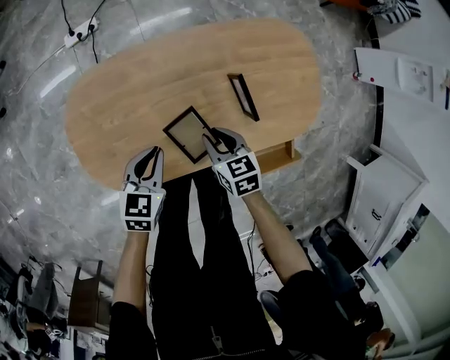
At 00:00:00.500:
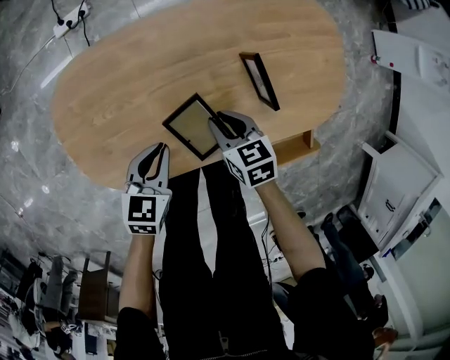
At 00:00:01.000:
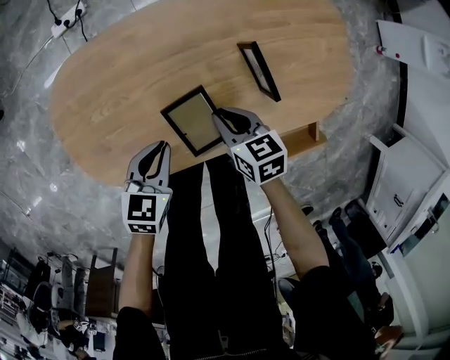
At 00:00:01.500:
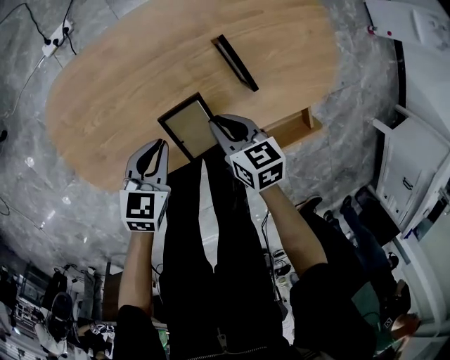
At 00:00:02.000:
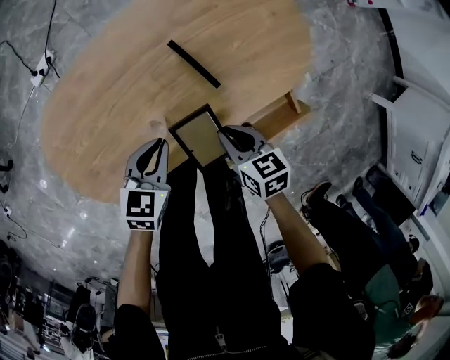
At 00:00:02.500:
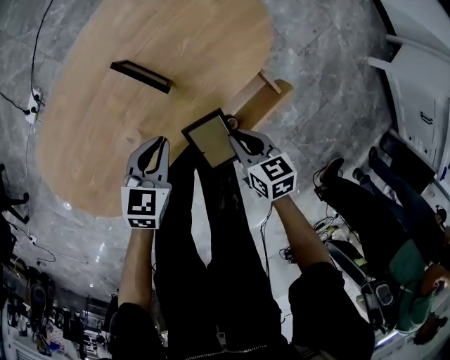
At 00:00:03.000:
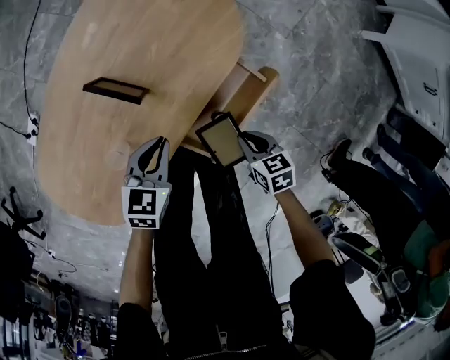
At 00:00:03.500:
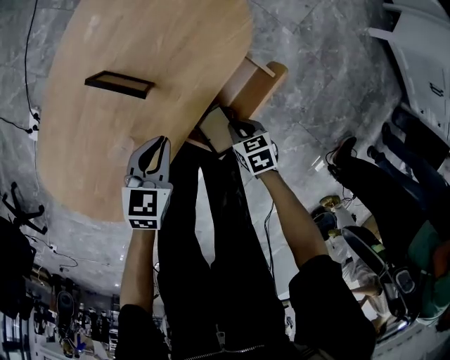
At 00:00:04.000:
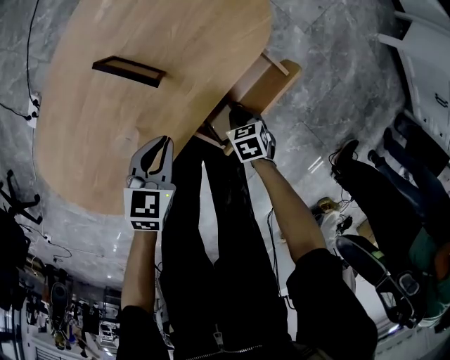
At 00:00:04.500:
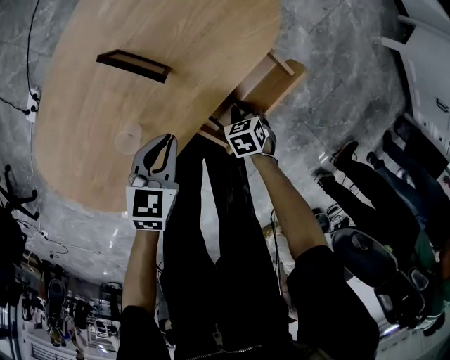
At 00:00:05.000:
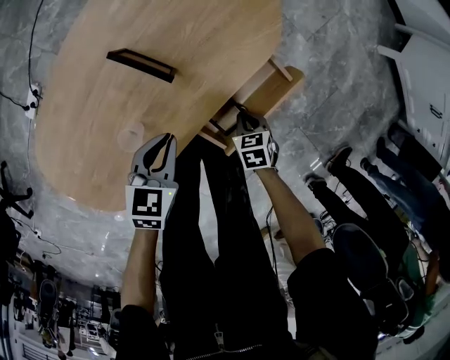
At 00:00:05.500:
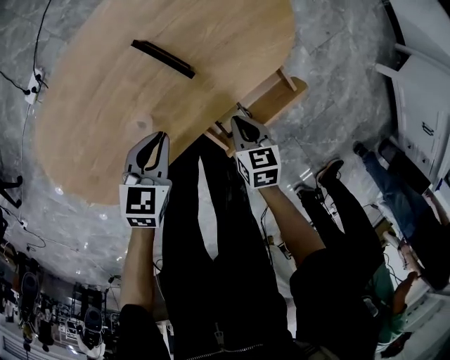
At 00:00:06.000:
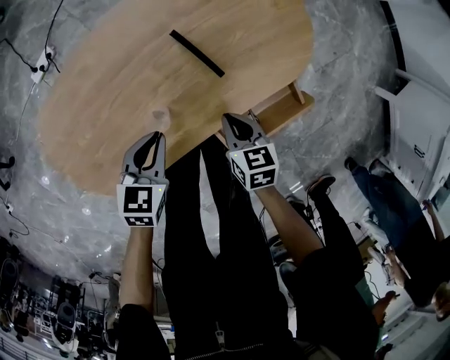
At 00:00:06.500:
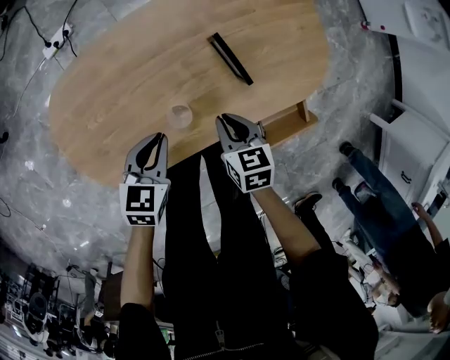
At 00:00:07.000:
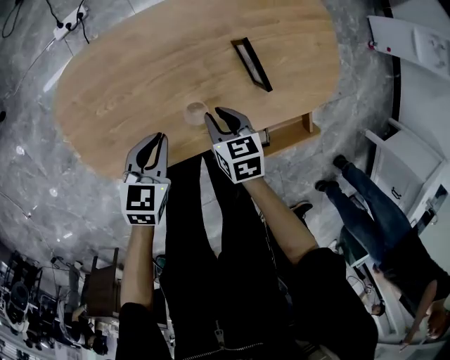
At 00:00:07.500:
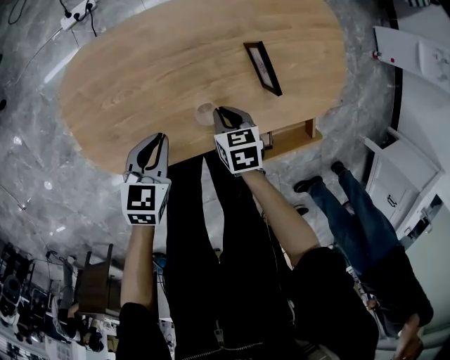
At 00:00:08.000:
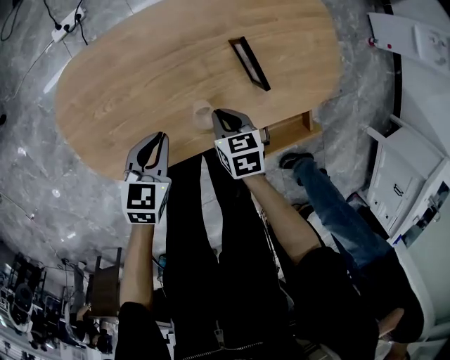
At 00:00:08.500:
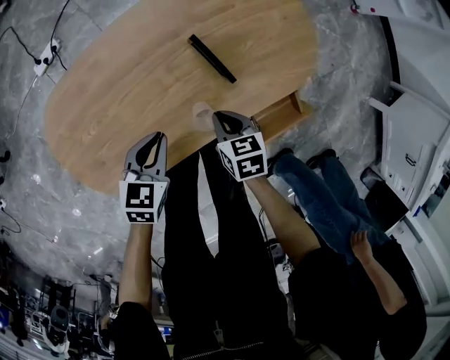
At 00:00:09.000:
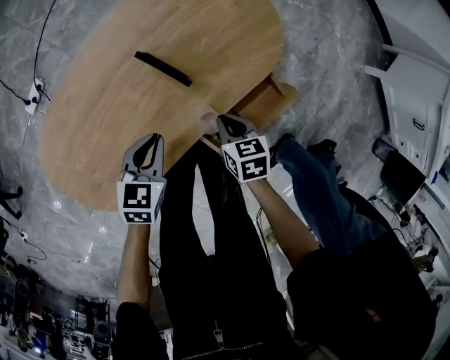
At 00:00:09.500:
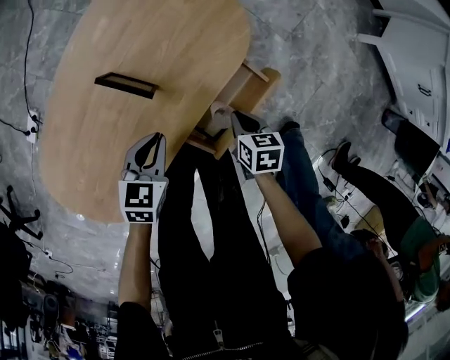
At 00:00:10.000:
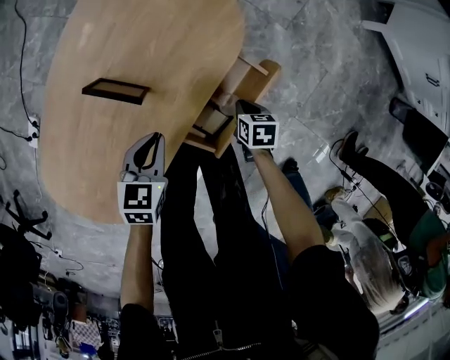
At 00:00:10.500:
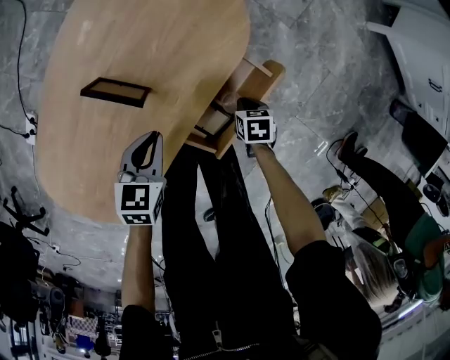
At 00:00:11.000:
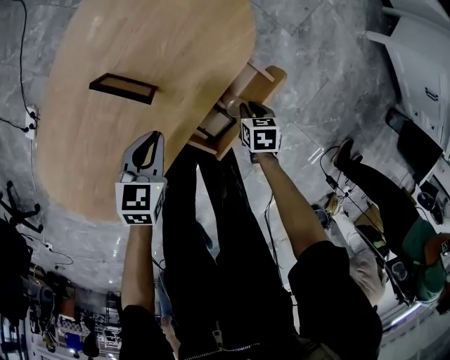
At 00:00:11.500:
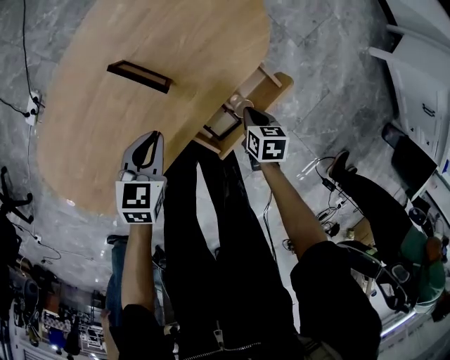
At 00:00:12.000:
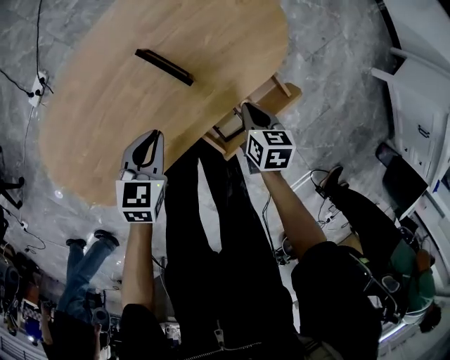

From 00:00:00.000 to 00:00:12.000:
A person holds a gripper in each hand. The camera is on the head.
From 00:00:00.000 to 00:00:02.000: The right gripper is displaced to the right and backward by roughly 15 cm, and changes its angle by some 20 degrees. The left gripper shifts about 10 cm to the right.
From 00:00:02.000 to 00:00:04.000: The right gripper is displaced downward by approximately 15 cm, and turns by about 30 degrees, while the left gripper changes place by some 10 cm.
From 00:00:04.000 to 00:00:06.000: The left gripper ends up roughly 10 cm from where it was; the right gripper shifts by approximately 20 cm, and turns by approximately 20 degrees.
From 00:00:06.000 to 00:00:08.000: The two grippers go roughly 10 cm to the left.
From 00:00:08.000 to 00:00:10.000: The left gripper ends up some 25 cm from where it was, and changes its angle by some 40 degrees. The right gripper moves some 35 cm, and twists some 50 degrees clockwise, seen from behind.
From 00:00:10.000 to 00:00:12.000: The right gripper changes place by roughly 15 cm; the left gripper changes place by roughly 10 cm.

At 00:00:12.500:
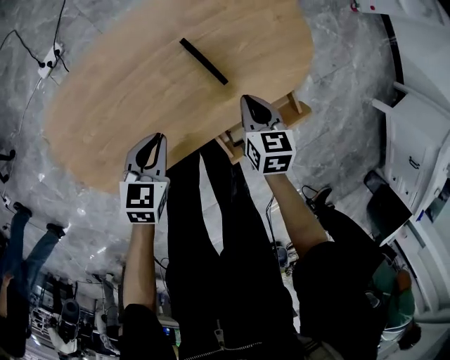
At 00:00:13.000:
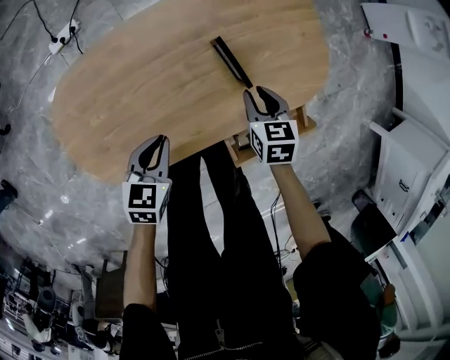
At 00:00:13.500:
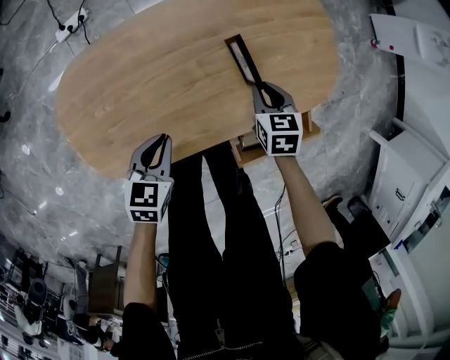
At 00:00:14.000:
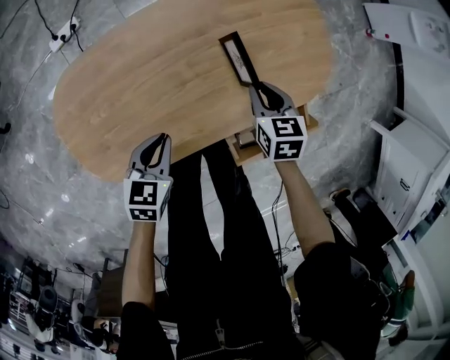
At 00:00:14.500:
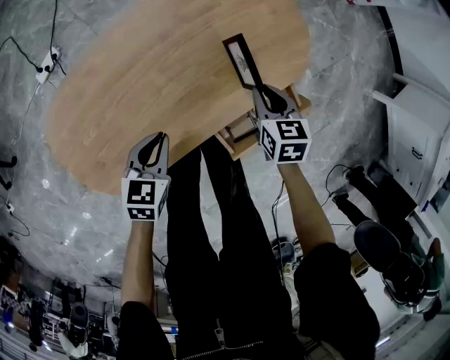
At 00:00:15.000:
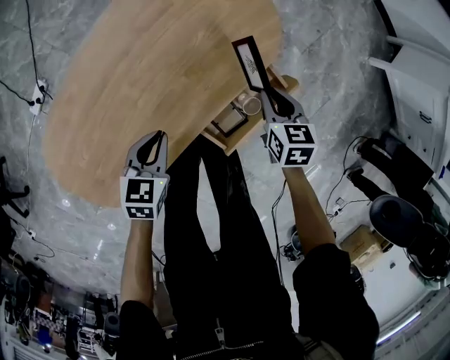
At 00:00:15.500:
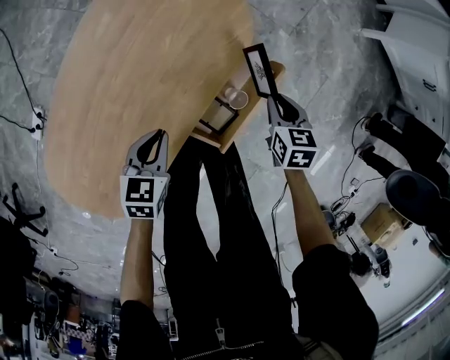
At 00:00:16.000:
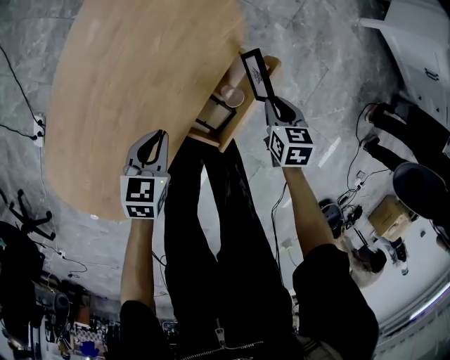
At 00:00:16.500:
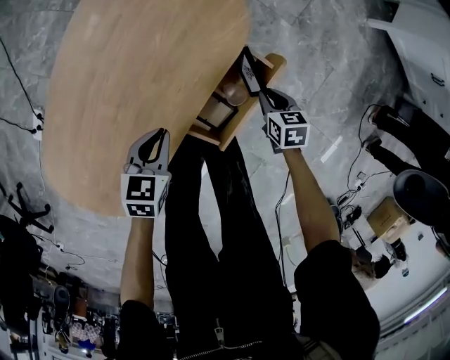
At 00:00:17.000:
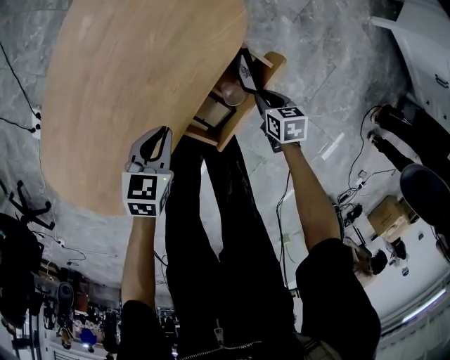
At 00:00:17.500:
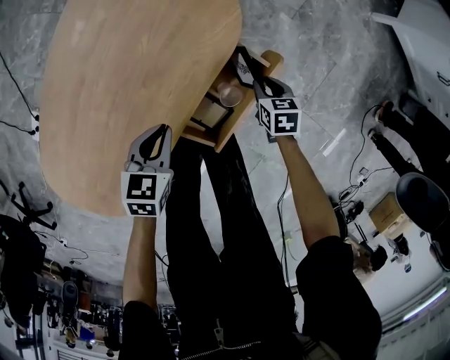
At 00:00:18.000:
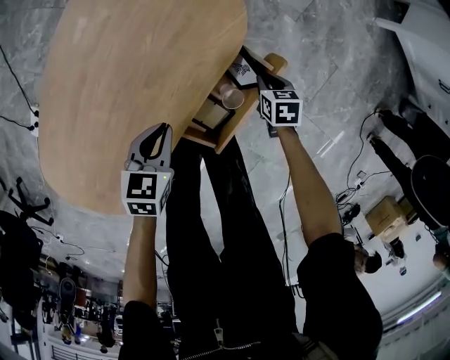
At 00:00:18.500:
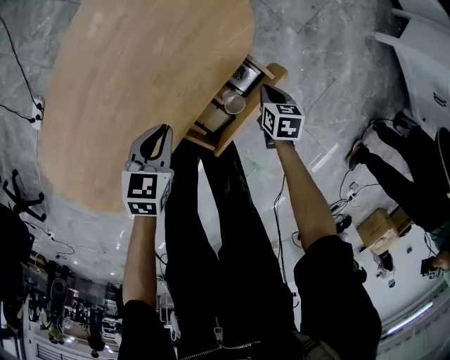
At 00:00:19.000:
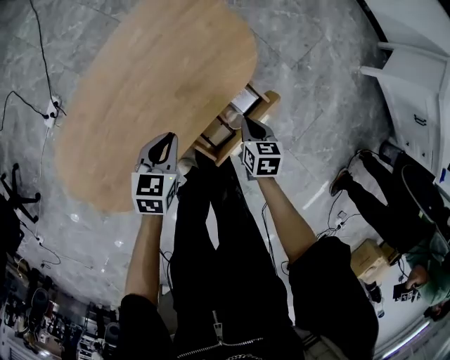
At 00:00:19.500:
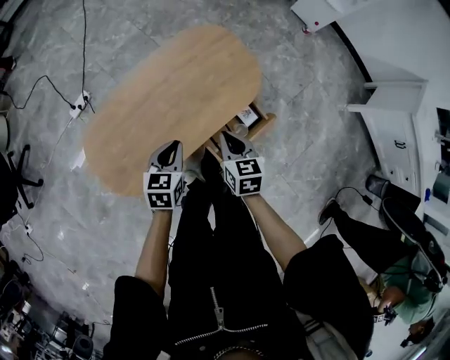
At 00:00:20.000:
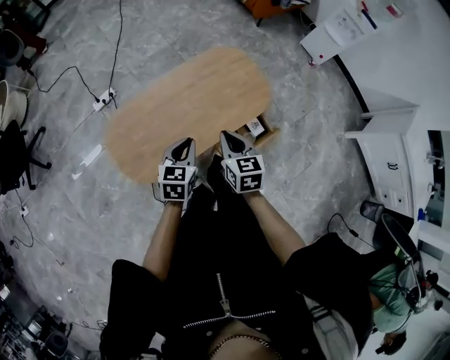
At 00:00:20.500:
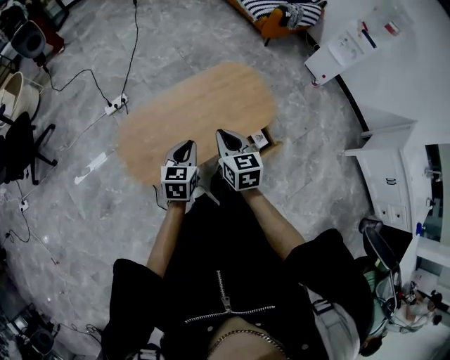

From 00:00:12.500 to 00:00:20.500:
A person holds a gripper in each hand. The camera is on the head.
From 00:00:14.500 to 00:00:16.500: The right gripper shifts by roughly 25 cm, and turns by approximately 20 degrees. Meanwhile the left gripper changes place by approximately 15 cm, and turns by approximately 20 degrees.
From 00:00:16.500 to 00:00:18.500: The right gripper changes place by roughly 5 cm.
From 00:00:18.500 to 00:00:20.500: The left gripper shifts about 35 cm upward, and rotates some 40 degrees, while the right gripper shifts about 50 cm upward, and tilts its fingers roughly 40 degrees upward.

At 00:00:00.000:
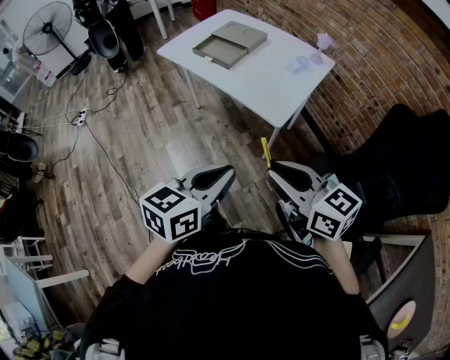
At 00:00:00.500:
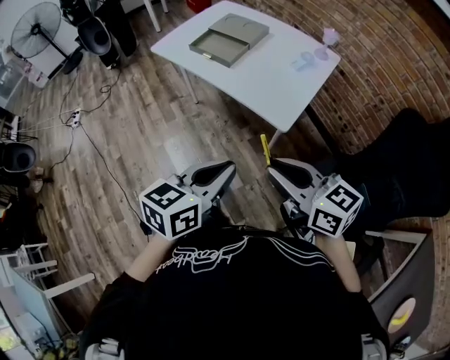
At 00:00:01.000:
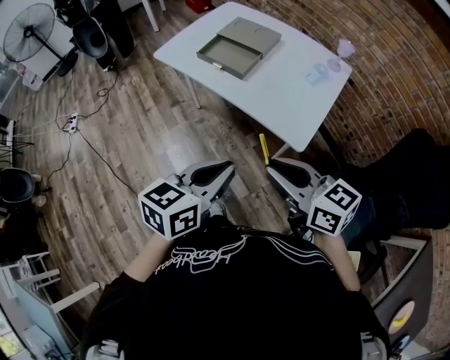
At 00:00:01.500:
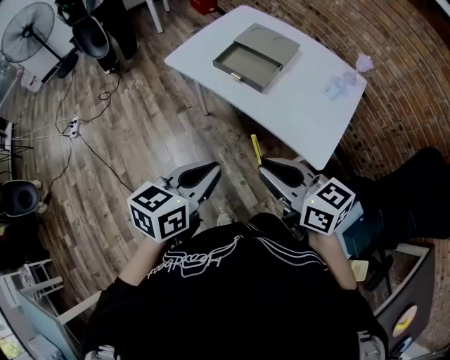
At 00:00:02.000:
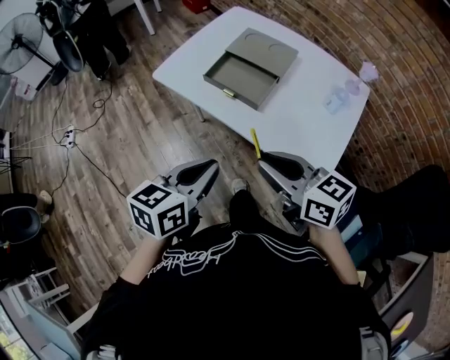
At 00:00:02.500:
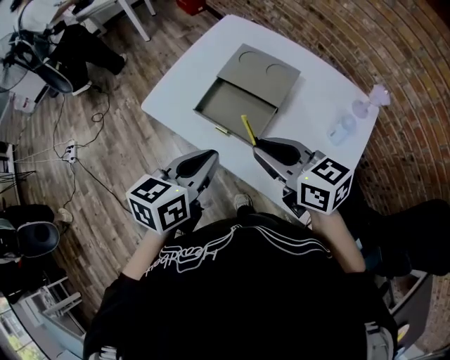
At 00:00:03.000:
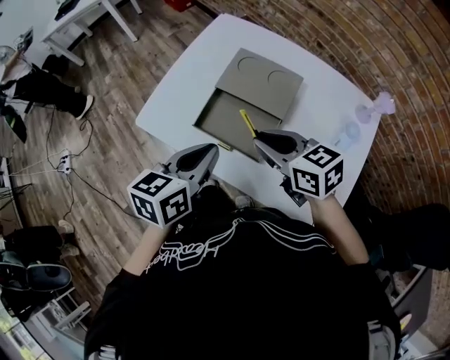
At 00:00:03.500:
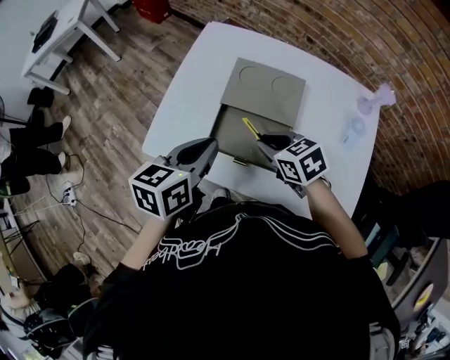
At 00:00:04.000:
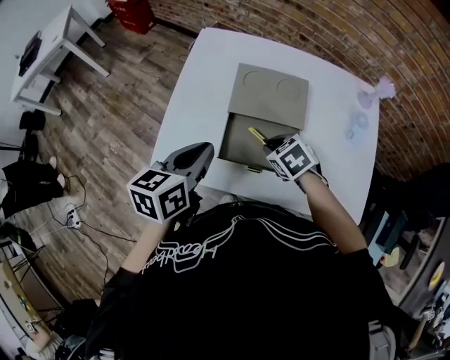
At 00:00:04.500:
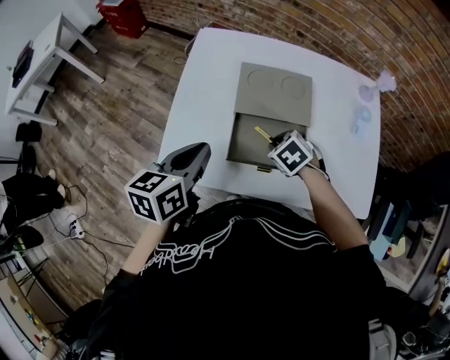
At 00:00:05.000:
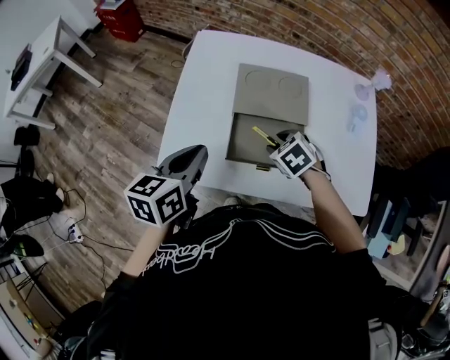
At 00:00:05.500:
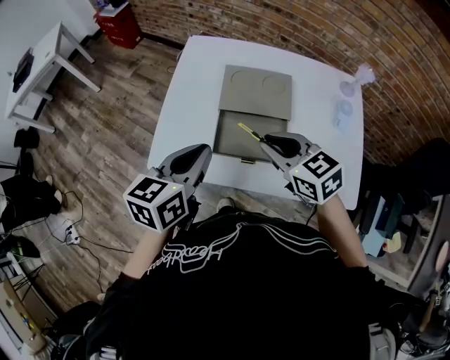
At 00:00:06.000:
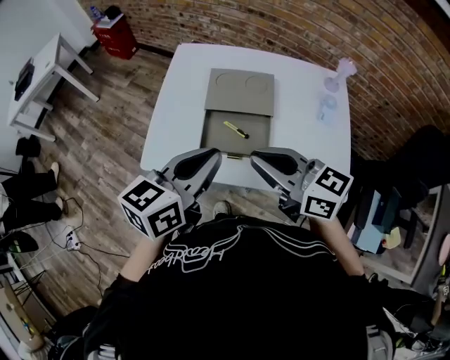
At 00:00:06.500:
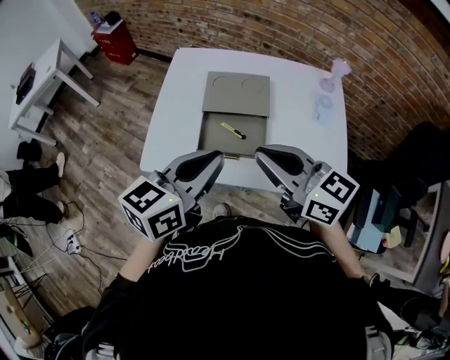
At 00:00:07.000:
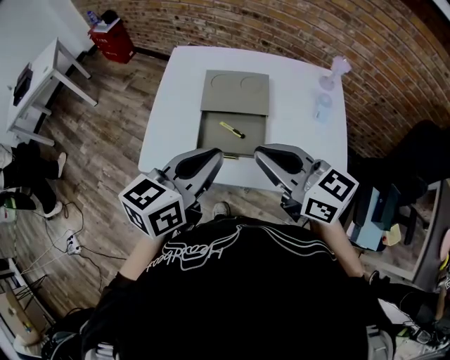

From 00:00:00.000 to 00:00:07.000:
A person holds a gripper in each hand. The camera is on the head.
From 00:00:00.000 to 00:00:02.000: The grippers both shift forward and to the left by approximately 35 cm.
From 00:00:02.000 to 00:00:03.500: The right gripper moves forward and downward, approximately 35 cm, and points its fingers some 30 degrees further downward; the left gripper shifts about 30 cm forward.
From 00:00:03.500 to 00:00:05.000: The left gripper shifts roughly 10 cm to the left. The right gripper goes approximately 5 cm downward, rotates some 30 degrees, and opens.
From 00:00:05.000 to 00:00:07.000: The right gripper travels upward and backward by some 30 cm, tilts its fingers some 60 degrees upward, and closes its fingers. The left gripper is displaced to the right, upward and backward by some 20 cm.
